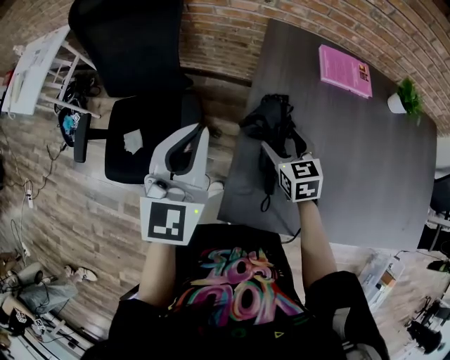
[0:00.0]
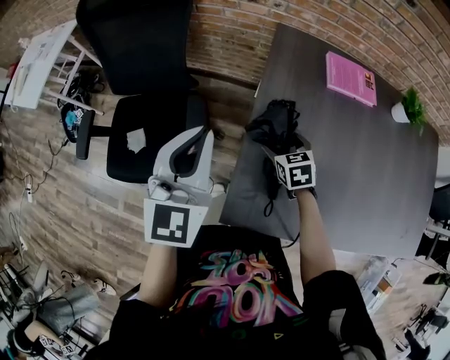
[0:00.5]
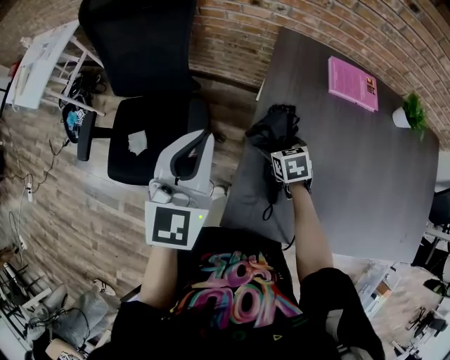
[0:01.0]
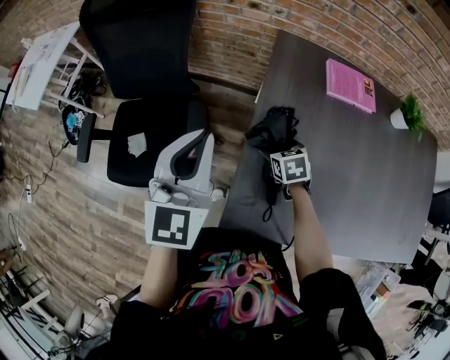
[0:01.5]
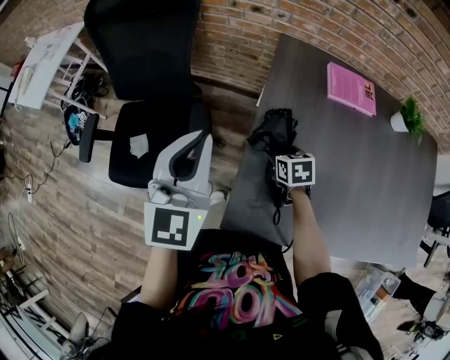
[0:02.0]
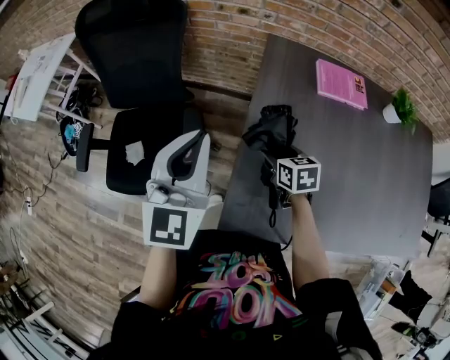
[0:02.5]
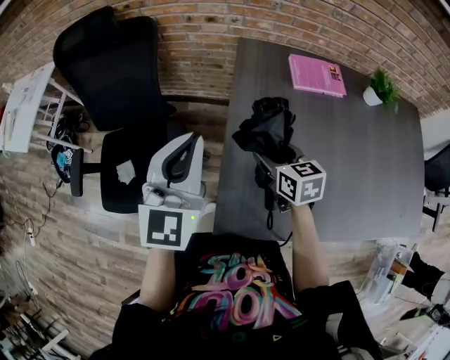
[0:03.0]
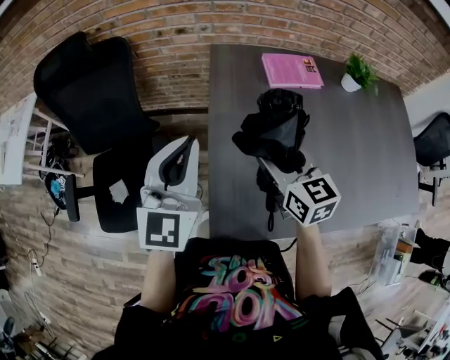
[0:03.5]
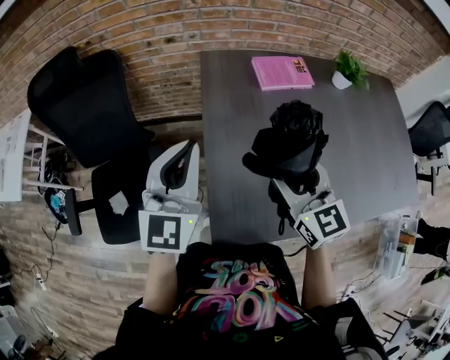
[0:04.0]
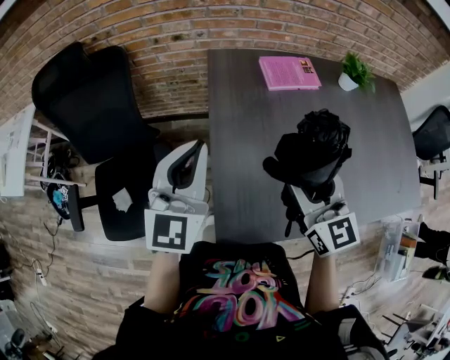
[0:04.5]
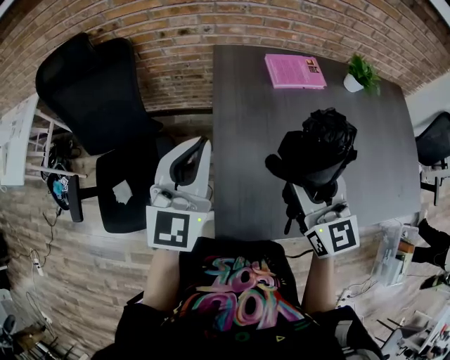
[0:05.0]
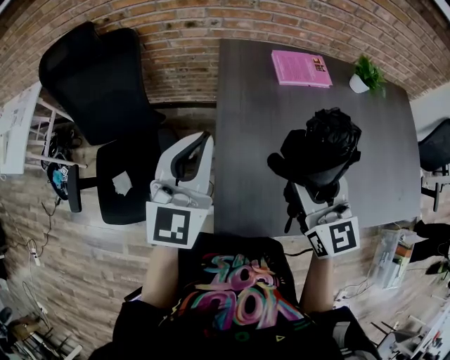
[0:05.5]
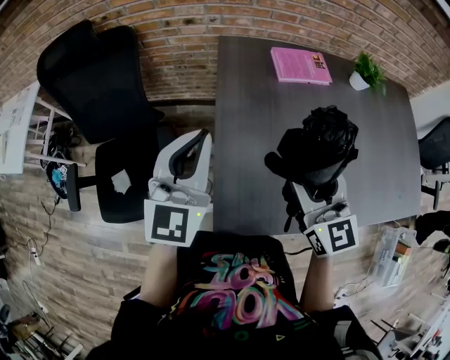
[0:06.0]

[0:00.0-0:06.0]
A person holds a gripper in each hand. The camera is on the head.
0:00.0 to 0:02.0: The right gripper shifts roughly 10 cm downward, and changes its angle by roughly 20 degrees.
0:02.0 to 0:04.0: The right gripper heads upward, covering approximately 25 cm, and points its fingers approximately 40 degrees further upward. Meanwhile the left gripper heads to the right, covering some 10 cm.
0:04.0 to 0:06.0: There are only small adjustments of the grippers.

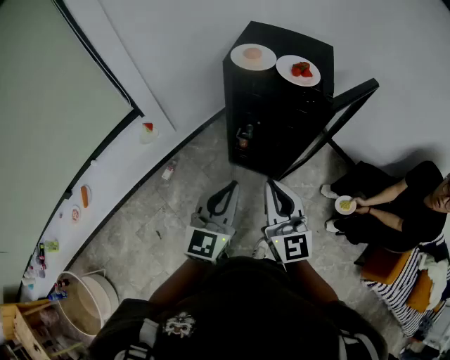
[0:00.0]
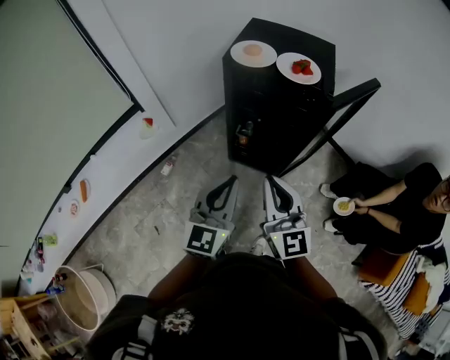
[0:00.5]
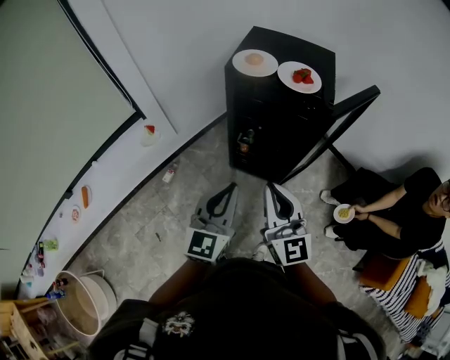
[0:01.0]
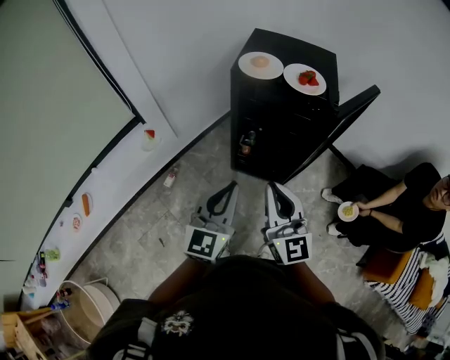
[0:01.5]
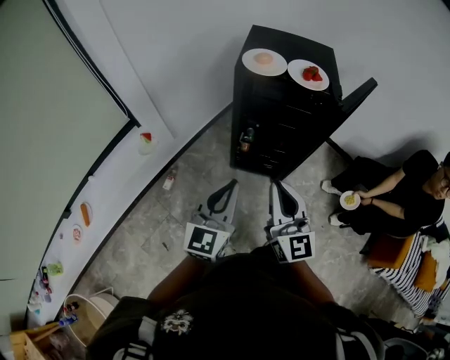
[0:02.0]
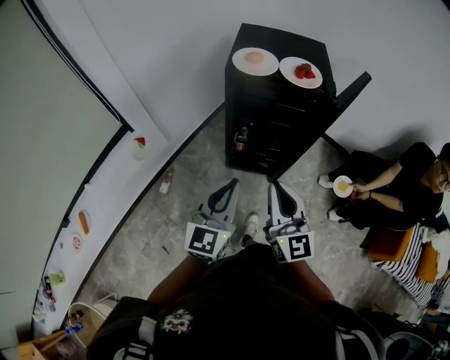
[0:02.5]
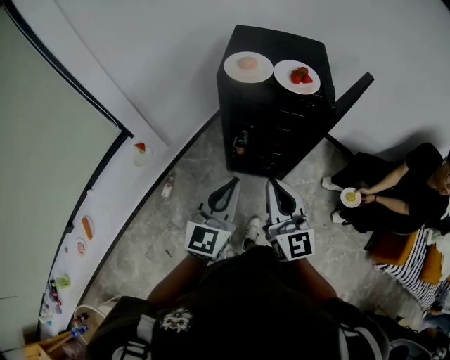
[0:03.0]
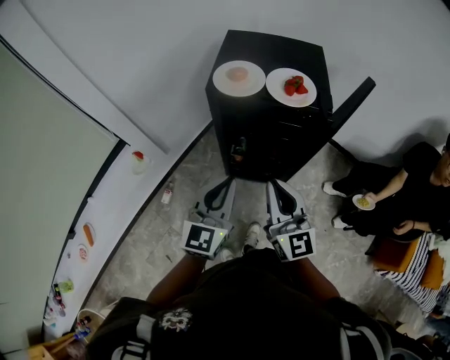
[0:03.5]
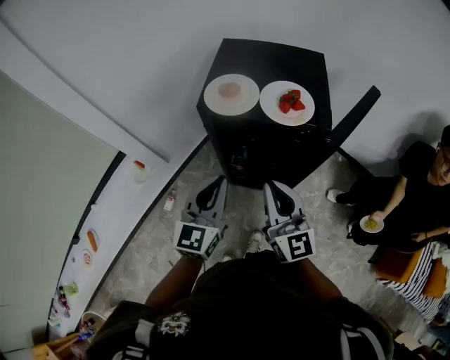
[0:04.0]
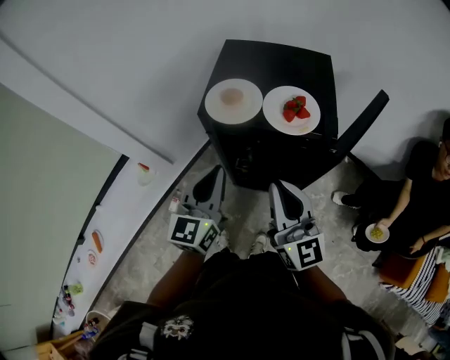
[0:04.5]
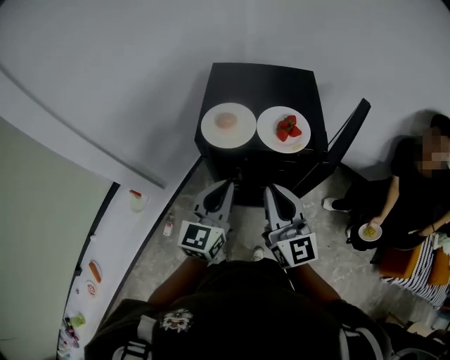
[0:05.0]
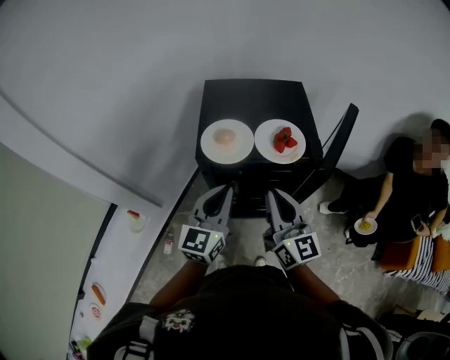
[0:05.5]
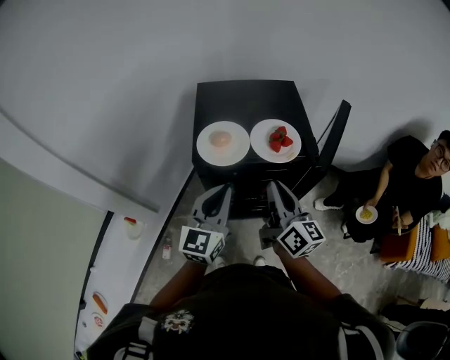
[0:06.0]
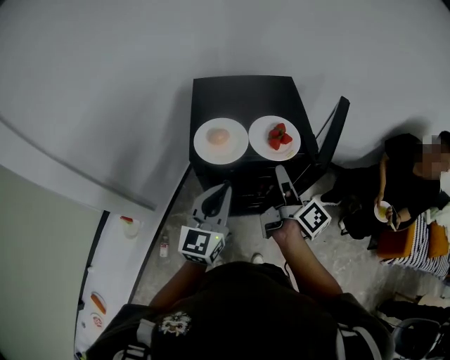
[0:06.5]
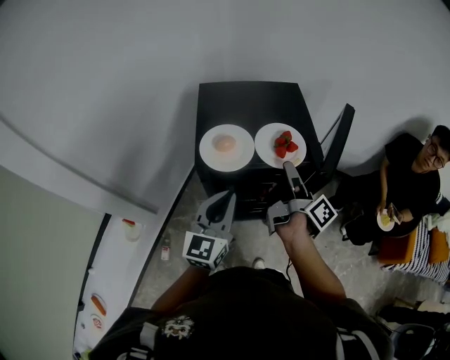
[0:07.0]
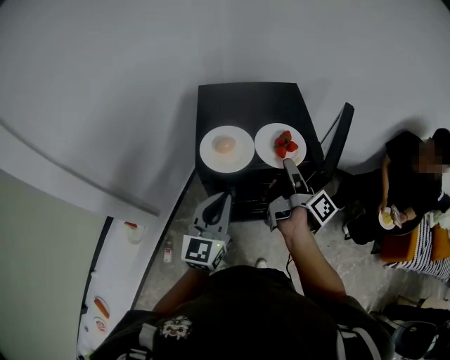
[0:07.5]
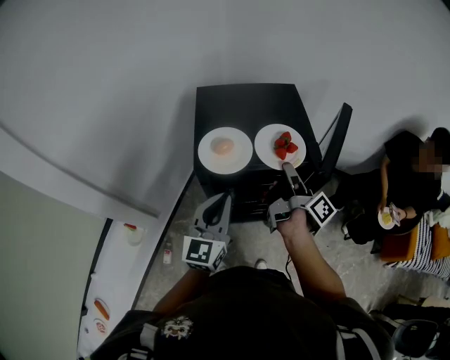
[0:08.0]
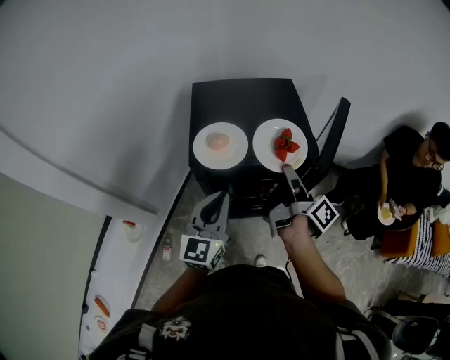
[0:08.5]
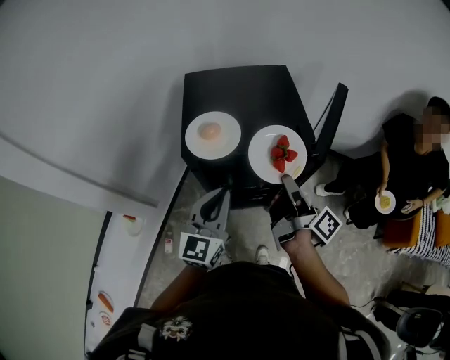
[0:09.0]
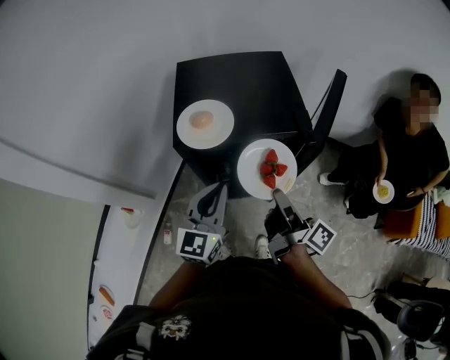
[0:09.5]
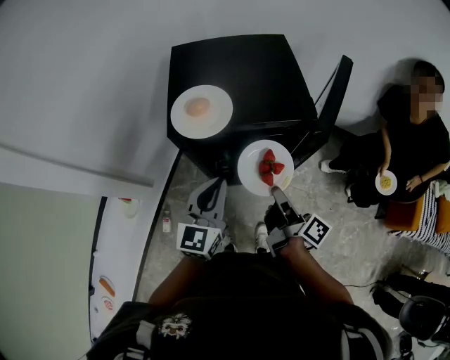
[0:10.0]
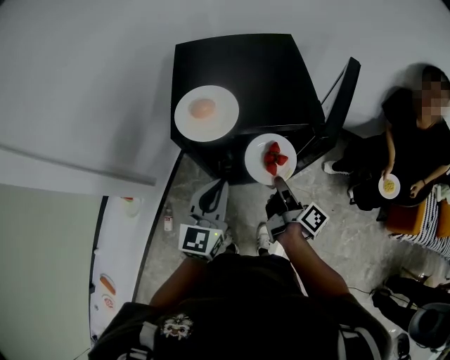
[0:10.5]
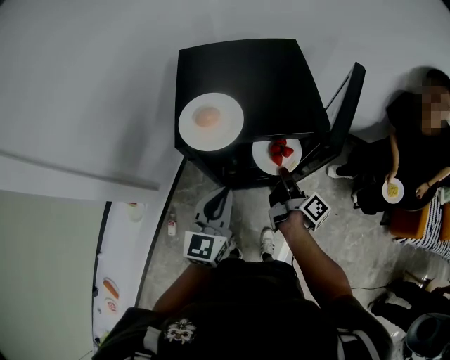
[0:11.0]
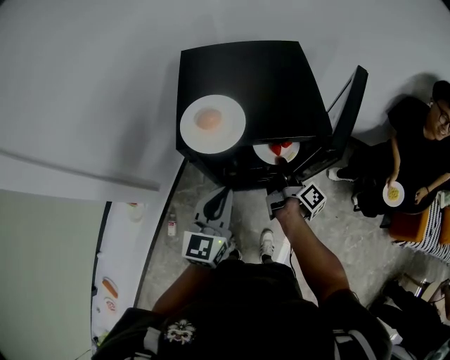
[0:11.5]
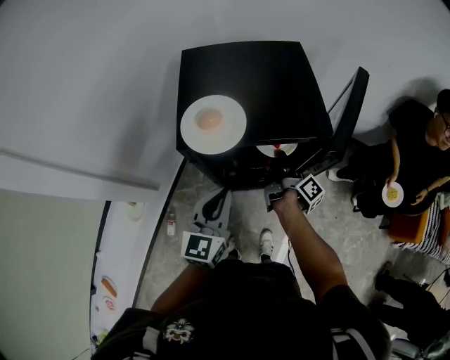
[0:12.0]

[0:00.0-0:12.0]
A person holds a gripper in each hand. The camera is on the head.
0:00.0 to 0:02.0: The two grippers go some 5 cm to the left.
0:02.0 to 0:04.0: Both grippers travel together forward, roughly 20 cm.
0:04.0 to 0:06.0: The two grippers go some 10 cm forward. The right gripper swivels about 30 degrees.
0:06.0 to 0:08.0: The right gripper travels forward by some 10 cm, and rolls clockwise, seen from behind, by roughly 50 degrees.
0:08.0 to 0:10.0: The right gripper shifts about 15 cm backward and downward. Meanwhile the left gripper shifts approximately 5 cm downward.
0:10.0 to 0:12.0: The right gripper goes some 20 cm forward and downward.

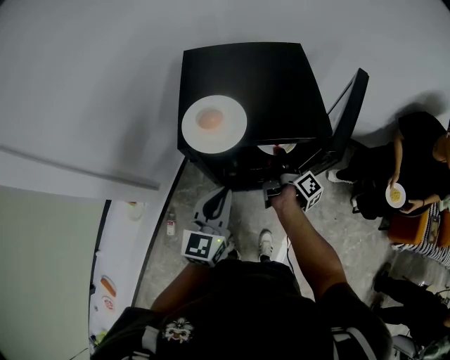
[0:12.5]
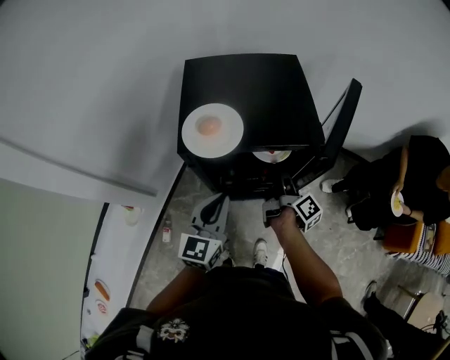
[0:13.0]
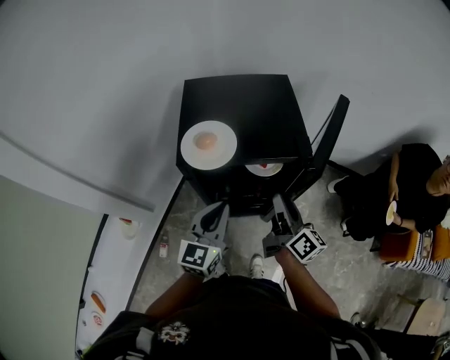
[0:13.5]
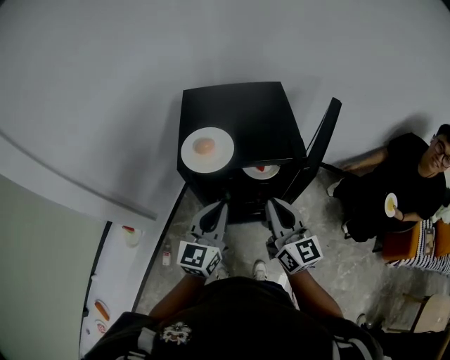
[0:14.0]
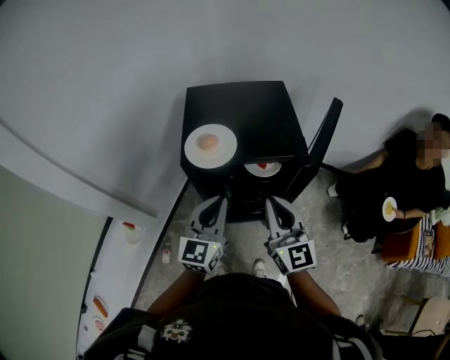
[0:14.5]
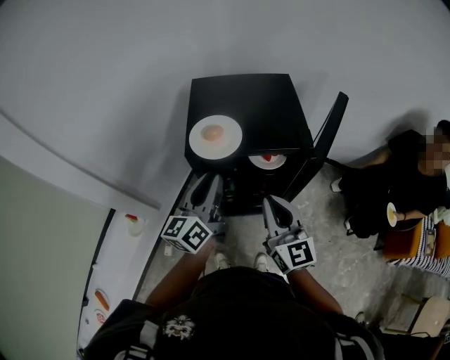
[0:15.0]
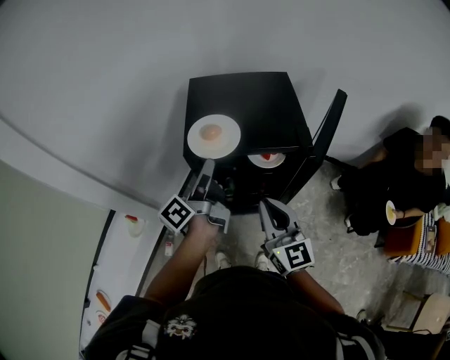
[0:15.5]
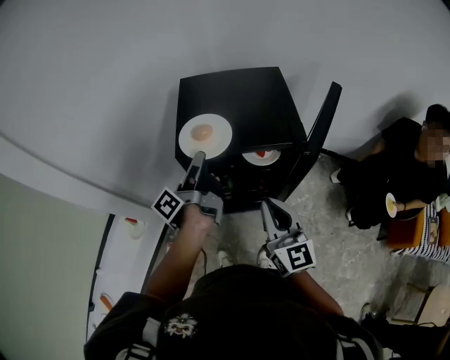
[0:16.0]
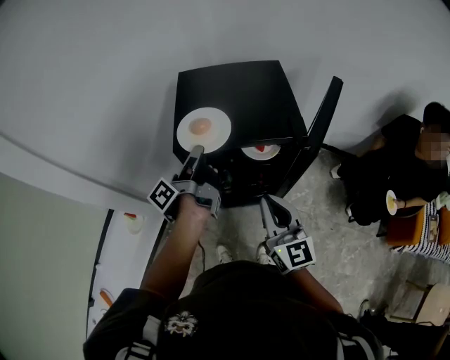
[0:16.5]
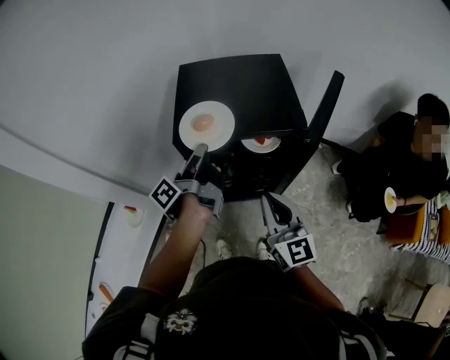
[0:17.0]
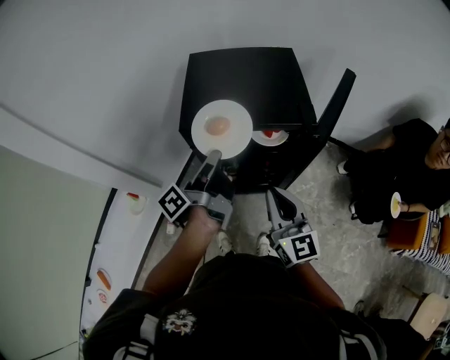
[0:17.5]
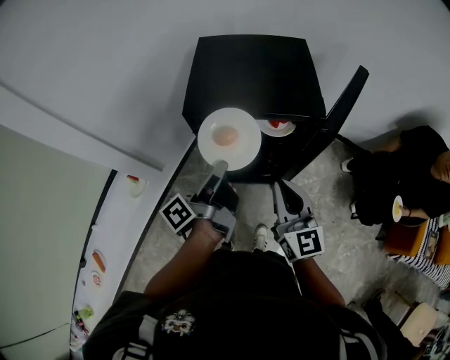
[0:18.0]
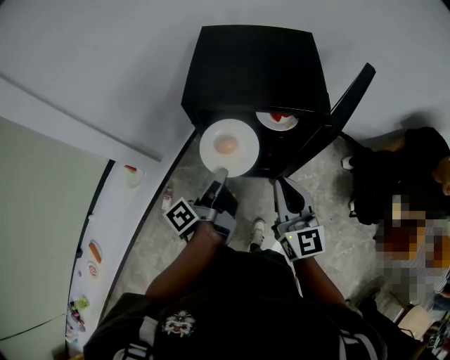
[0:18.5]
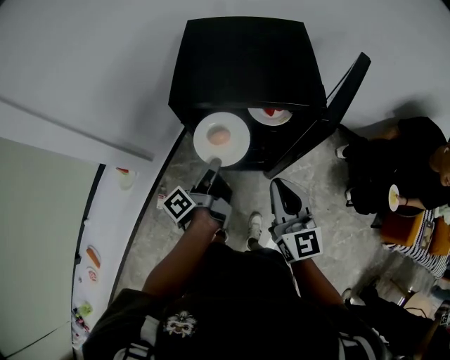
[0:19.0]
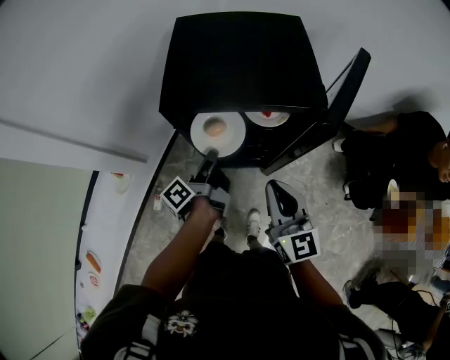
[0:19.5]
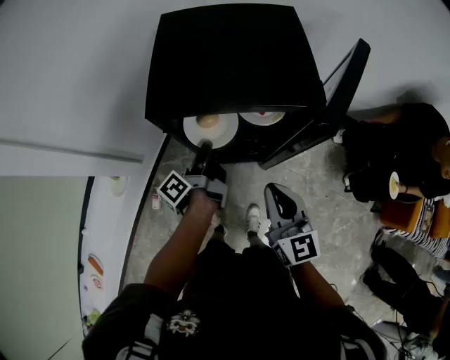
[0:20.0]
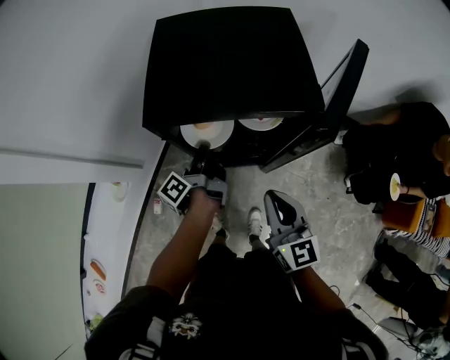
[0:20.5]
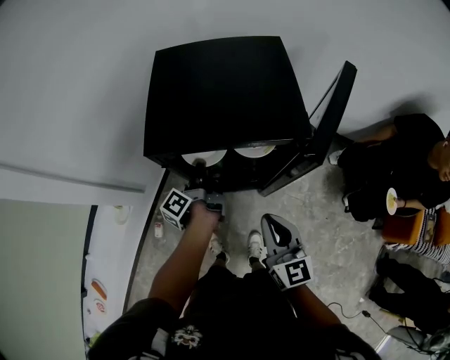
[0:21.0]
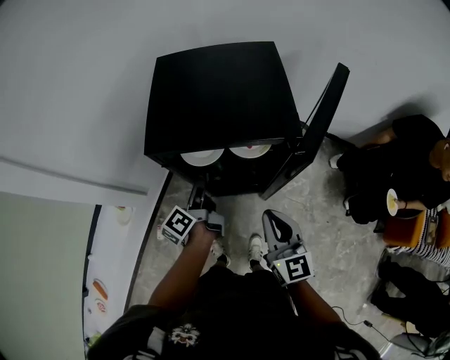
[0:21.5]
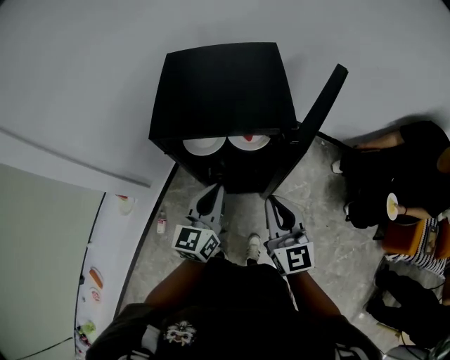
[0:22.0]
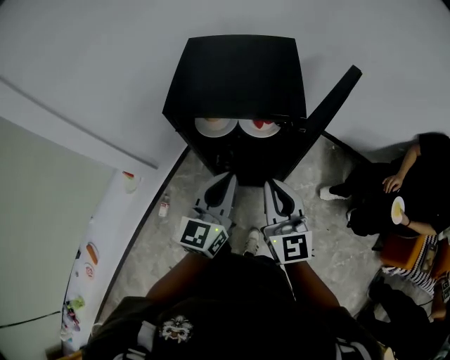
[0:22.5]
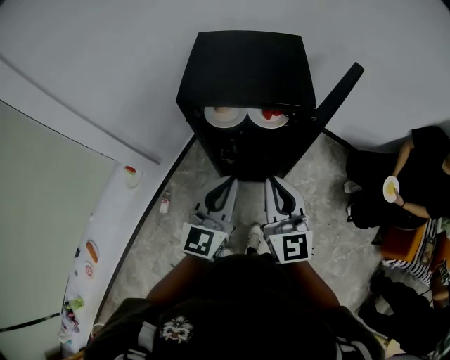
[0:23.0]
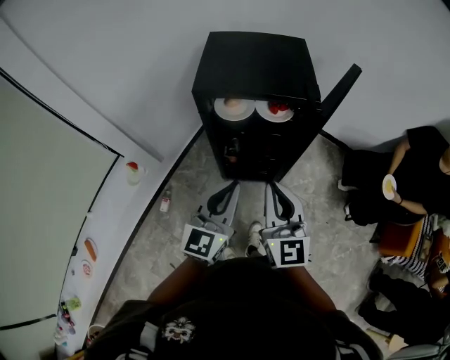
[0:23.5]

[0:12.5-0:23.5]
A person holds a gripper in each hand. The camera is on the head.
0:12.5 to 0:14.5: The left gripper shifts about 5 cm upward. The right gripper travels upward and backward by some 30 cm, twists approximately 90 degrees counterclockwise, seen from behind, and opens, then closes once more.
0:14.5 to 0:16.0: The left gripper moves forward, about 10 cm, twists approximately 80 degrees counterclockwise, seen from behind, and opens up.
0:16.0 to 0:18.0: The left gripper shifts roughly 10 cm backward, and closes up.
0:18.0 to 0:20.0: The right gripper travels downward by about 5 cm; the left gripper heads downward and forward, covering about 20 cm.
0:20.0 to 0:21.5: The left gripper changes its angle by some 20 degrees.
0:21.5 to 0:23.5: The right gripper moves backward, upward and to the left, about 15 cm. Meanwhile the left gripper is displaced backward and upward by about 30 cm, twists about 70 degrees clockwise, seen from behind, and closes its fingers.
